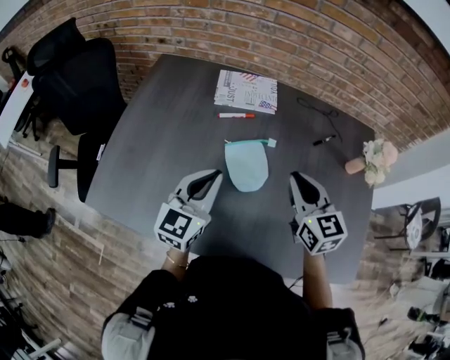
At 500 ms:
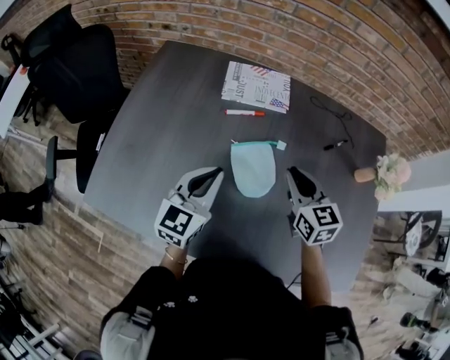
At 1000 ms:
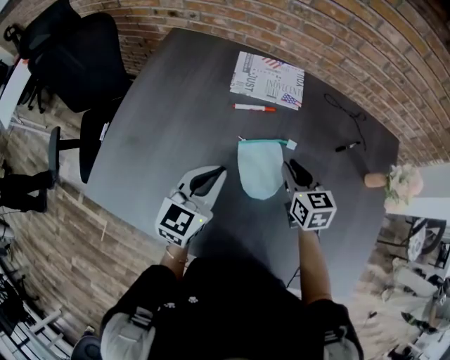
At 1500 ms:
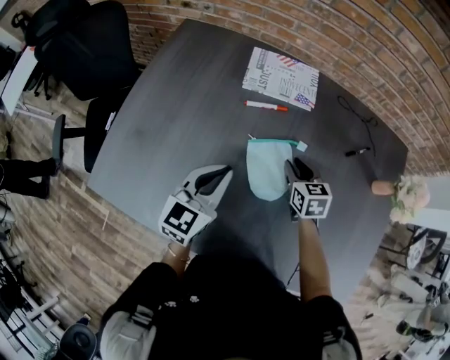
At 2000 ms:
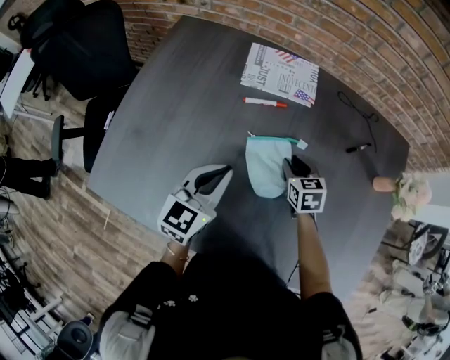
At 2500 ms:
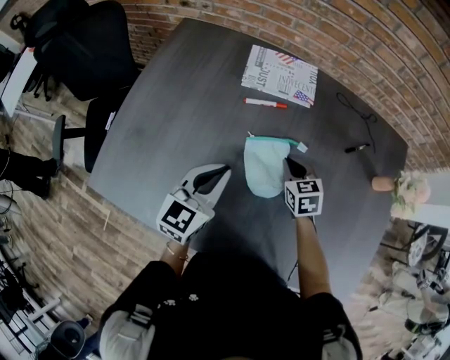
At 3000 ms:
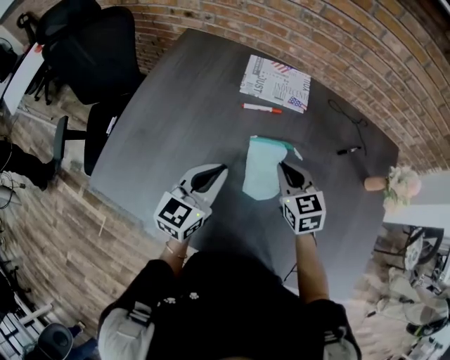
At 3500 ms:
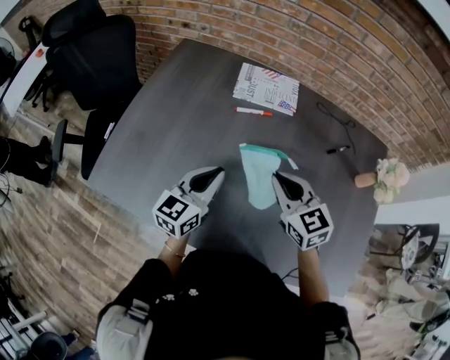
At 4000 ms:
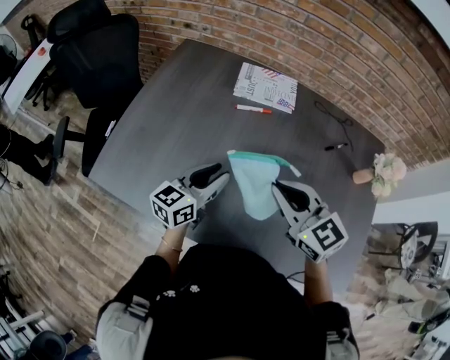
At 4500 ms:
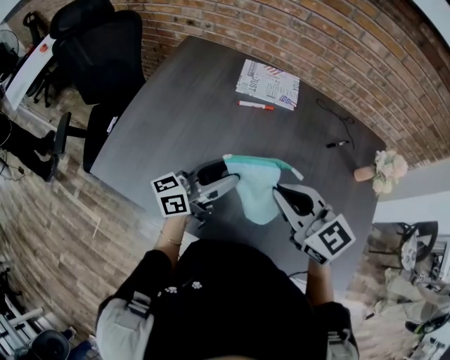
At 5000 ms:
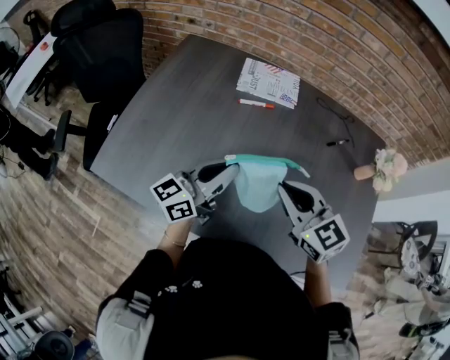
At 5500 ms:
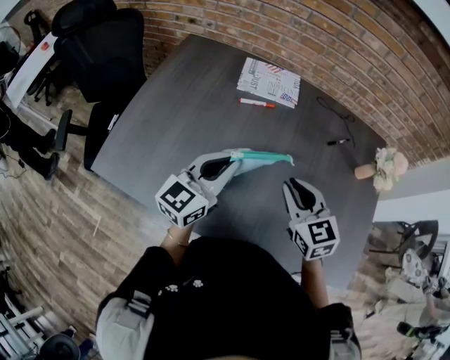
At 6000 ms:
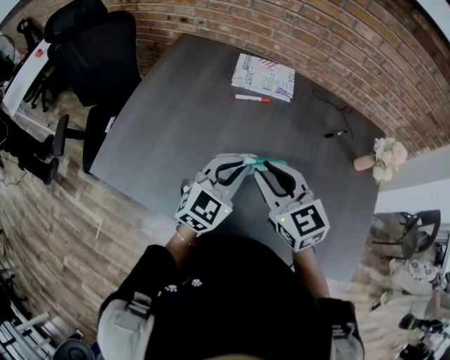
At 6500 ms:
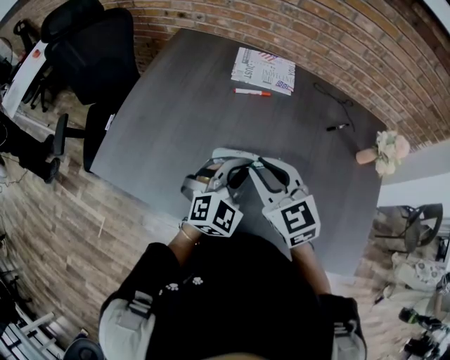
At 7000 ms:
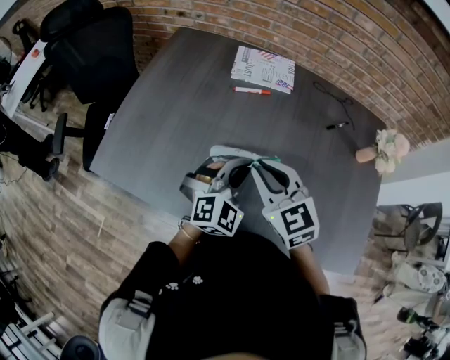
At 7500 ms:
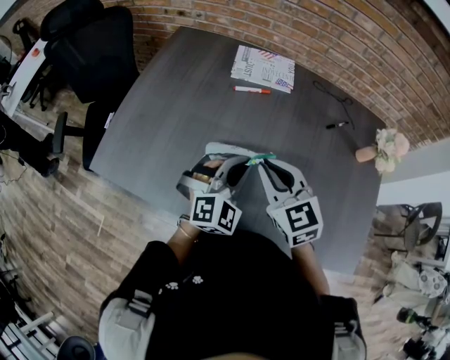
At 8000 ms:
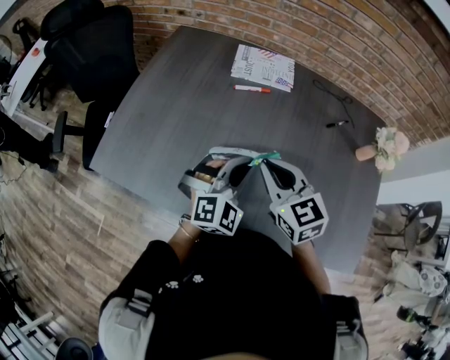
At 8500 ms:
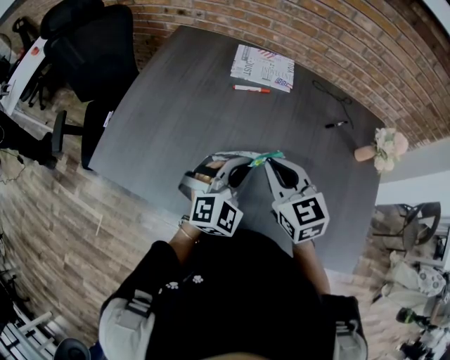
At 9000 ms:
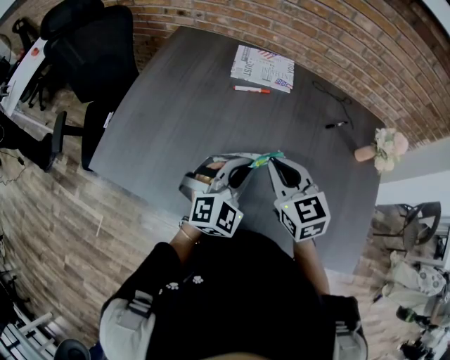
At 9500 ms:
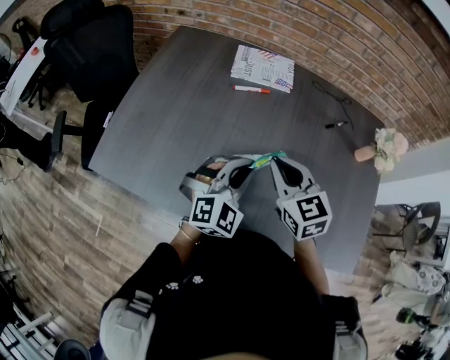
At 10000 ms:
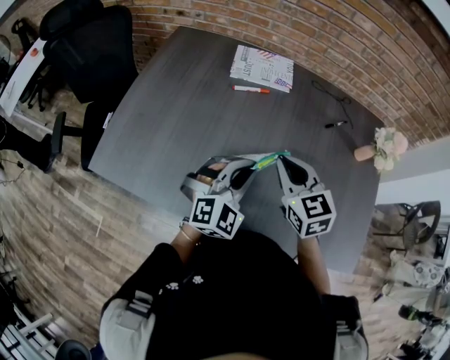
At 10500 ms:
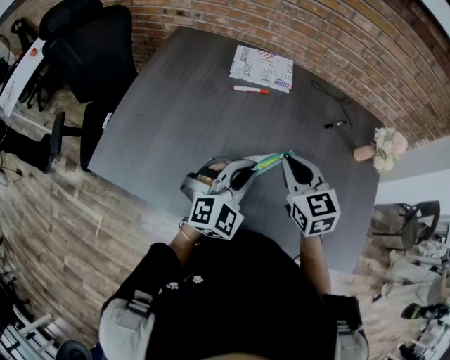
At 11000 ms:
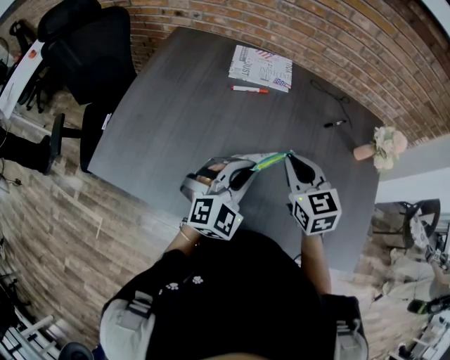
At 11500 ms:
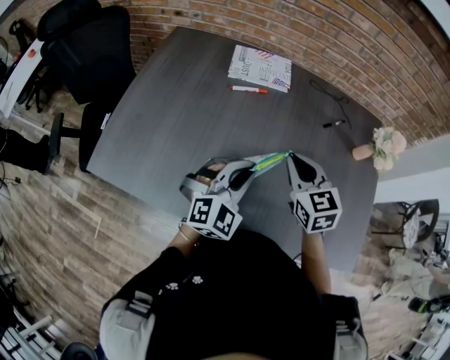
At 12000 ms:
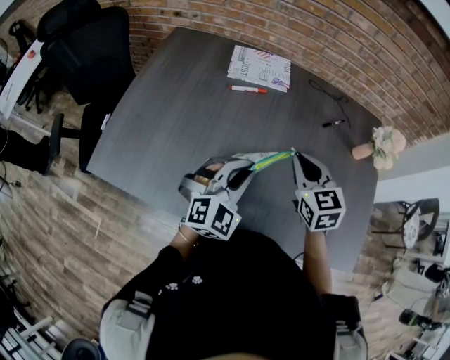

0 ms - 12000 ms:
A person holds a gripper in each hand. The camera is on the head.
0 ms - 2000 ms: The left gripper travels downward and forward by approximately 10 cm, while the right gripper shifts roughly 25 cm downward and forward, swivels roughly 30 degrees, and opens up.
2000 ms - 4000 ms: The left gripper is displaced backward by approximately 5 cm, and opens. The right gripper travels upward and backward by approximately 30 cm, changes its angle by some 40 degrees, and closes.
4000 ms - 6000 ms: The left gripper shifts roughly 5 cm to the right, swivels roughly 40 degrees, and closes; the right gripper opens up.
6000 ms - 8000 ms: The left gripper rotates about 30 degrees. Meanwhile the right gripper closes.
8000 ms - 10000 ms: The grippers move only a little.
10000 ms - 12000 ms: The right gripper moves to the right, roughly 5 cm.

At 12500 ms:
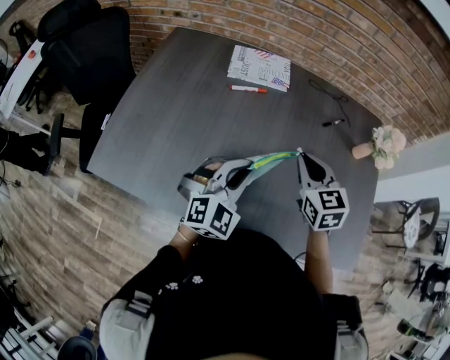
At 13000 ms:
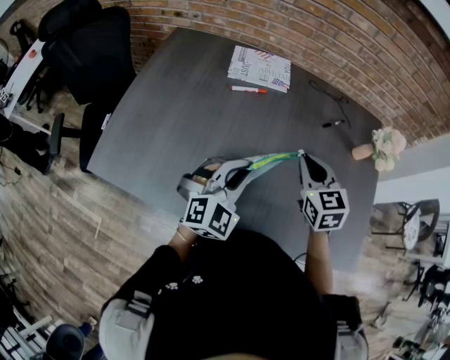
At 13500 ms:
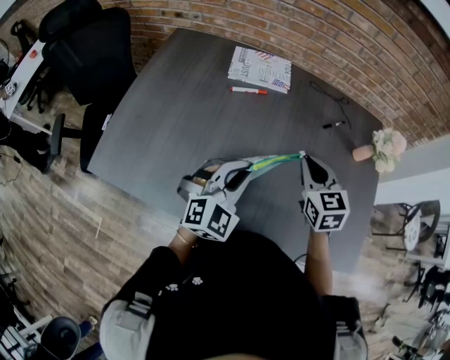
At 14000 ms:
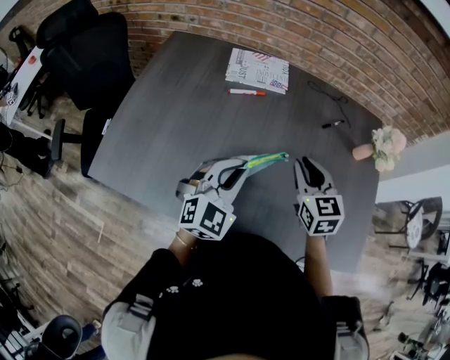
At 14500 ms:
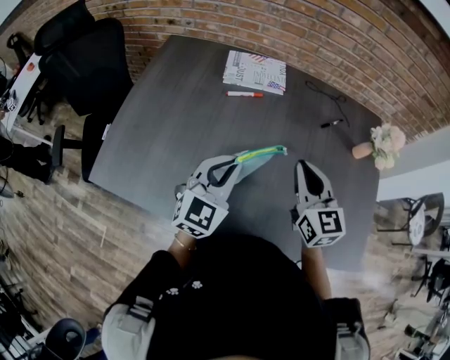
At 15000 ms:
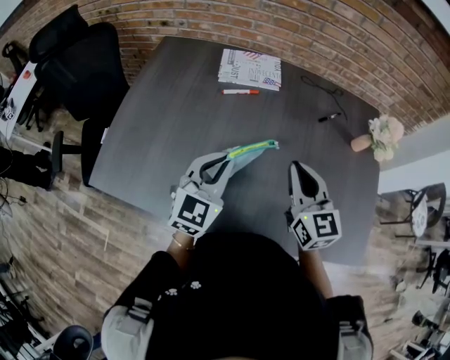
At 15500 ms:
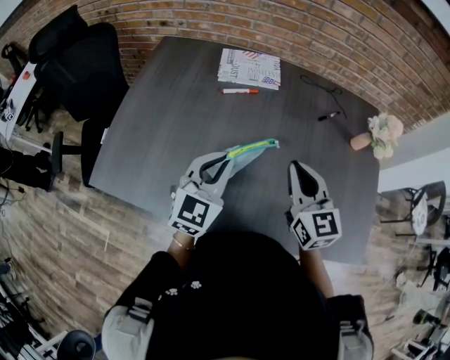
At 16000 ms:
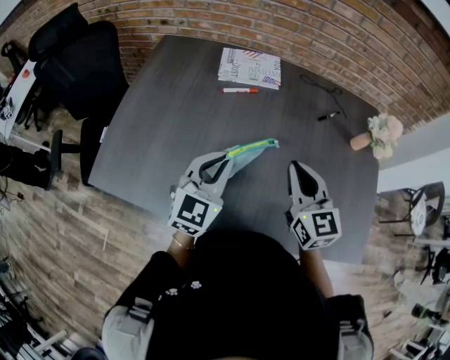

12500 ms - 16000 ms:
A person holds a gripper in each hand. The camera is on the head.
12500 ms - 14500 ms: The left gripper turns by roughly 20 degrees.
14500 ms - 16000 ms: The grippers make only small movements.

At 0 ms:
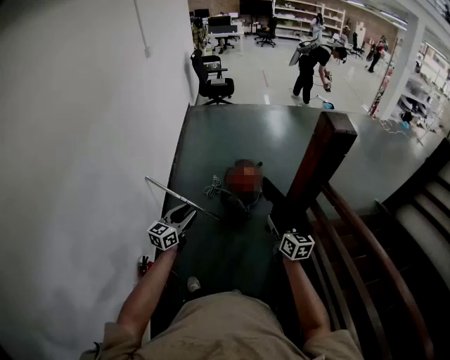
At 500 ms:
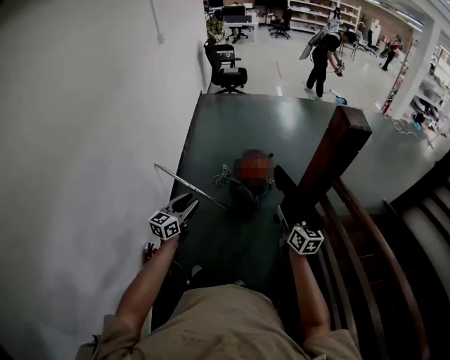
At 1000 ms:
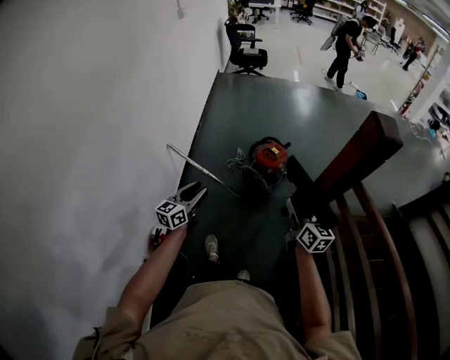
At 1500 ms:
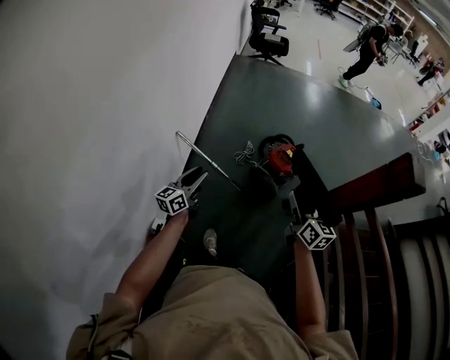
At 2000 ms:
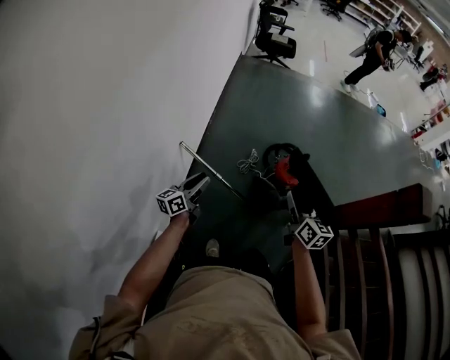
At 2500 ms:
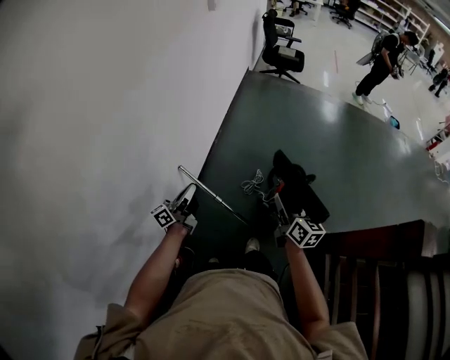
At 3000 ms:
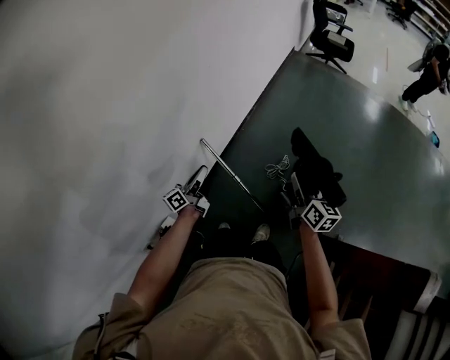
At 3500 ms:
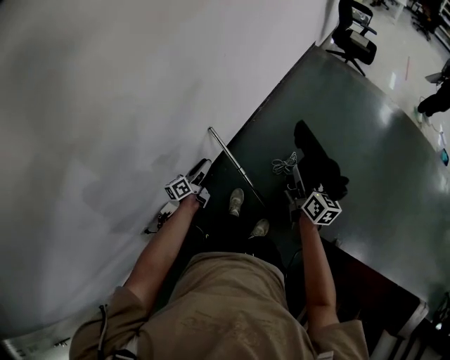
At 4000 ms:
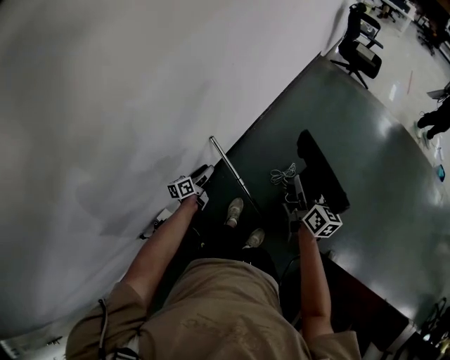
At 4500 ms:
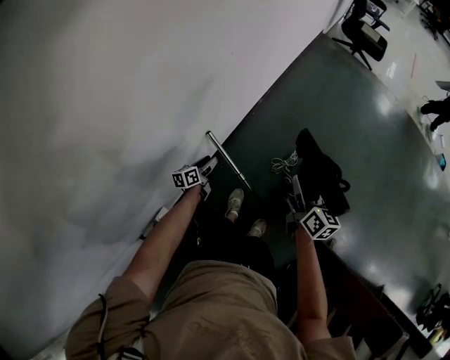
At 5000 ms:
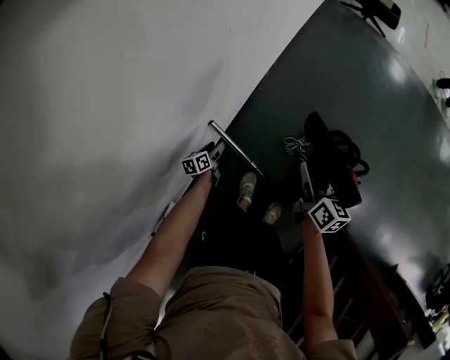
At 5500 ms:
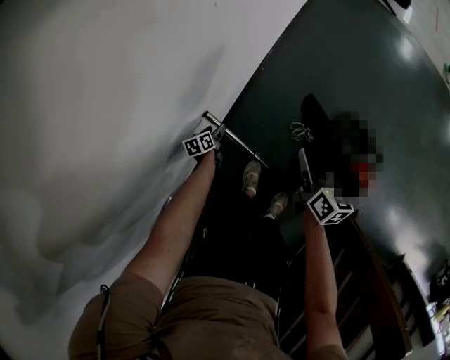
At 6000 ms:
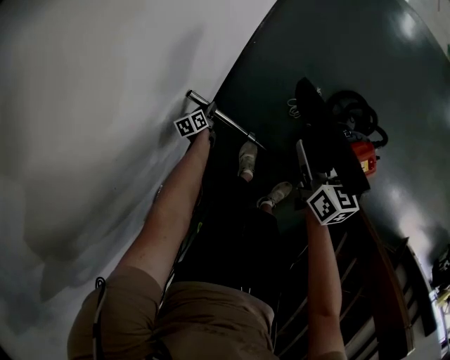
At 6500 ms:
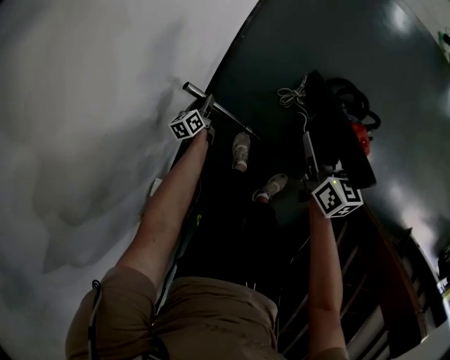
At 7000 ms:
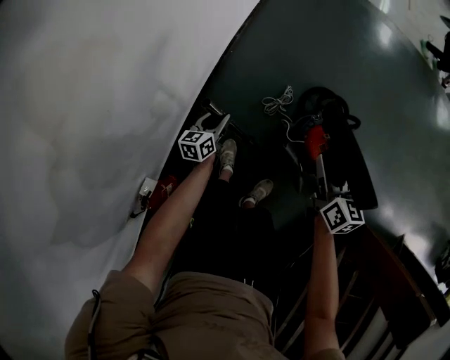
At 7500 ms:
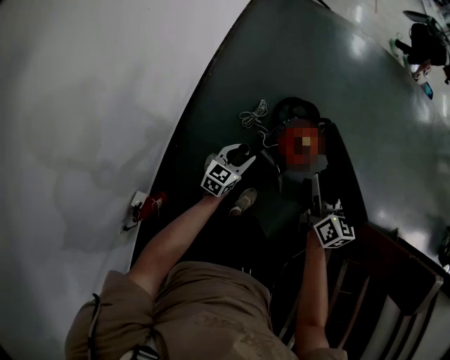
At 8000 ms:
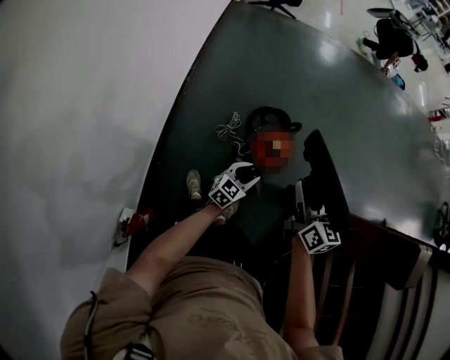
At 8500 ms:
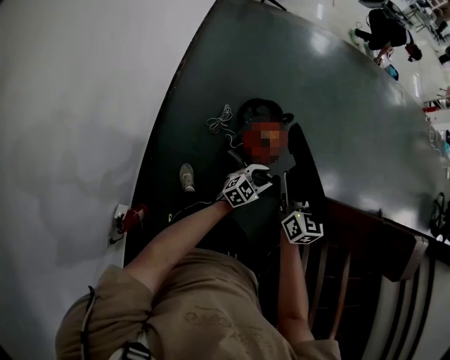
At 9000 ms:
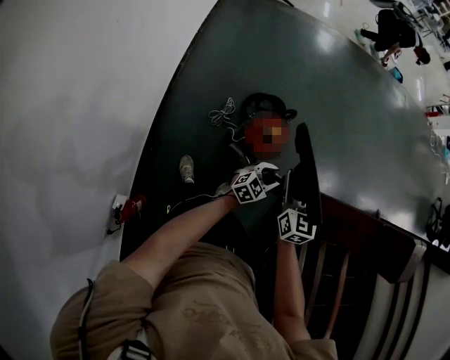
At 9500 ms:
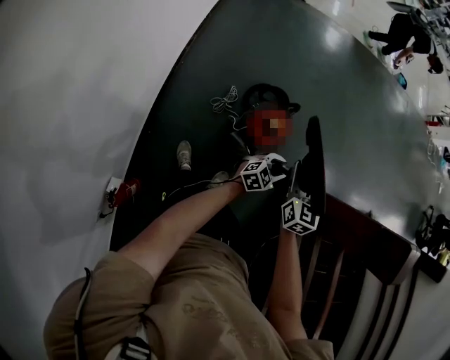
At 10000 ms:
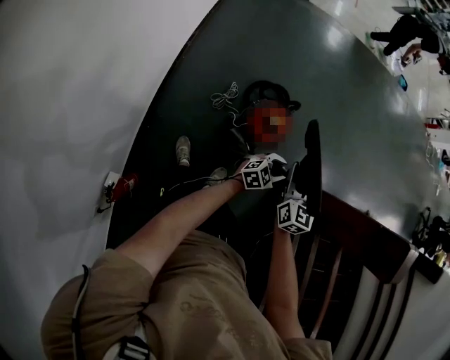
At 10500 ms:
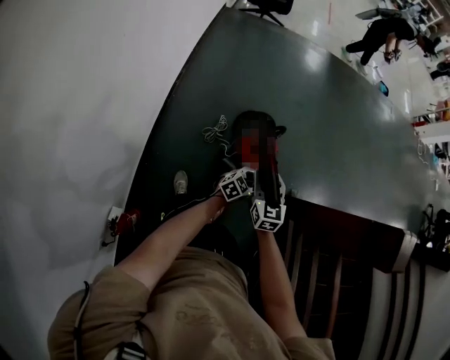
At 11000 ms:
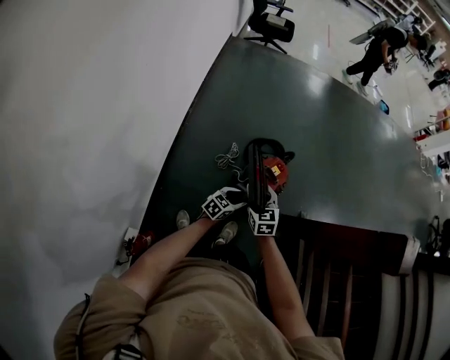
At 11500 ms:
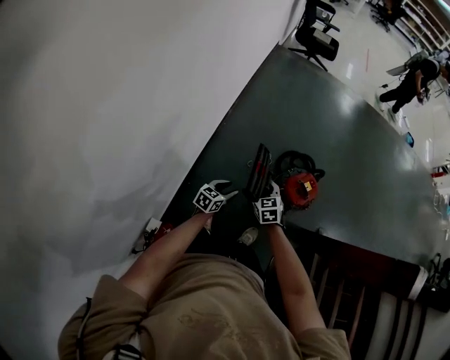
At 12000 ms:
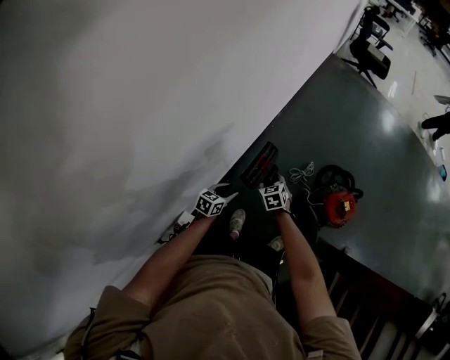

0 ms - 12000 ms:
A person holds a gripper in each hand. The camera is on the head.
0 ms - 2000 ms: Both grippers are carried to the left and forward, some 40 cm. The left gripper rotates some 30 degrees.
2000 ms - 4000 ms: The left gripper ends up roughly 25 cm from where it was, changes its angle by about 40 degrees, and closes and opens again; the right gripper ends up some 30 cm from where it was, and turns by approximately 30 degrees.
4000 ms - 6000 ms: Both grippers travel together downward and forward, about 40 cm. The left gripper tilts its fingers some 30 degrees downward, and opens and closes again.
6000 ms - 8000 ms: The two grippers travel together, approximately 60 cm. The right gripper swivels some 30 degrees; the left gripper rolls clockwise, seen from behind, by roughly 70 degrees.
8000 ms - 10000 ms: The left gripper heads to the right, covering roughly 15 cm, and turns by roughly 20 degrees. Meanwhile the right gripper moves downward, some 5 cm, and changes its angle by about 20 degrees.
10000 ms - 12000 ms: The two grippers travel together, roughly 60 cm. The left gripper swivels about 60 degrees; the right gripper tips its fingers downward by about 30 degrees.
